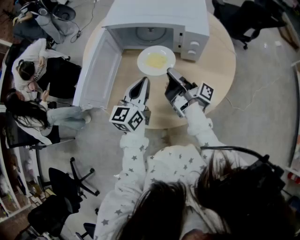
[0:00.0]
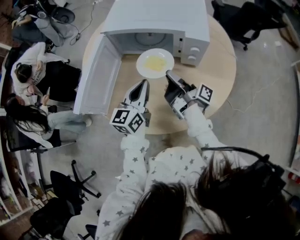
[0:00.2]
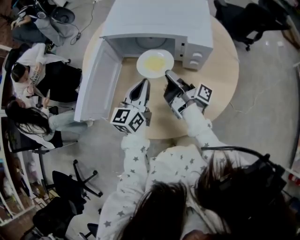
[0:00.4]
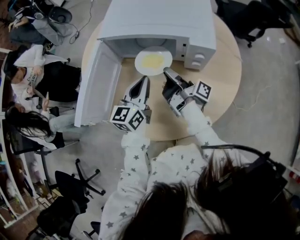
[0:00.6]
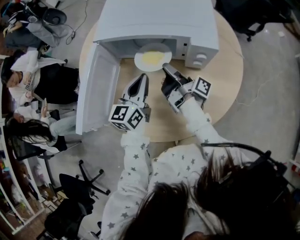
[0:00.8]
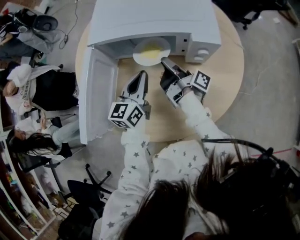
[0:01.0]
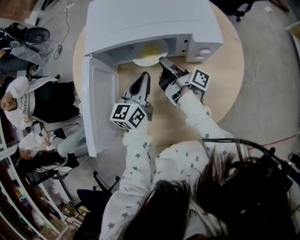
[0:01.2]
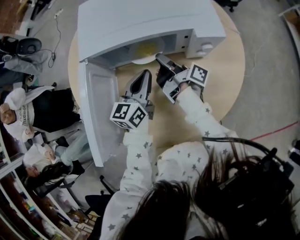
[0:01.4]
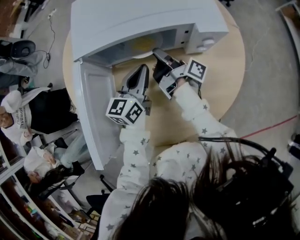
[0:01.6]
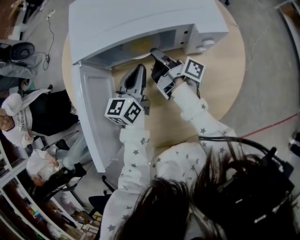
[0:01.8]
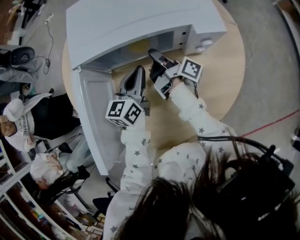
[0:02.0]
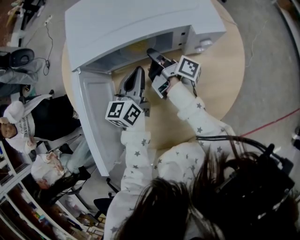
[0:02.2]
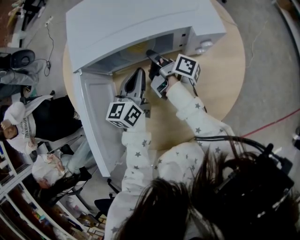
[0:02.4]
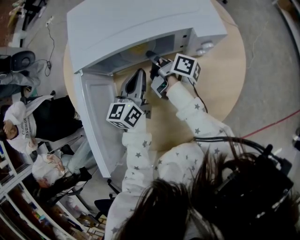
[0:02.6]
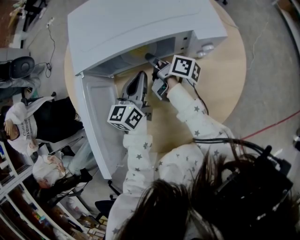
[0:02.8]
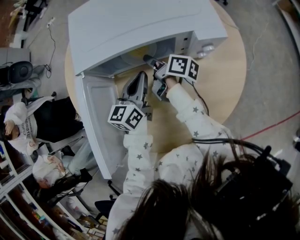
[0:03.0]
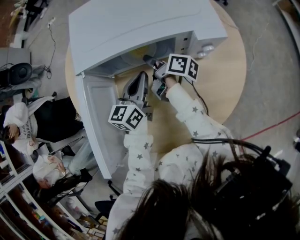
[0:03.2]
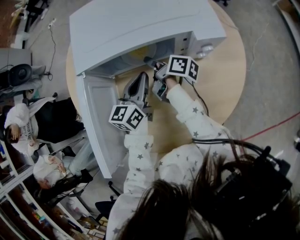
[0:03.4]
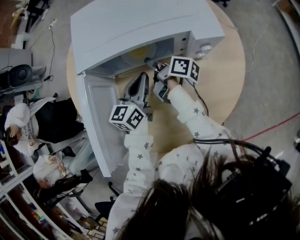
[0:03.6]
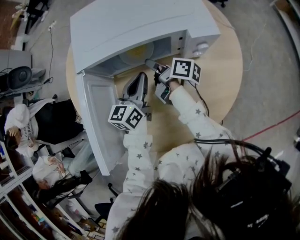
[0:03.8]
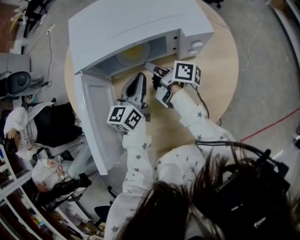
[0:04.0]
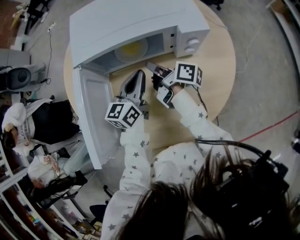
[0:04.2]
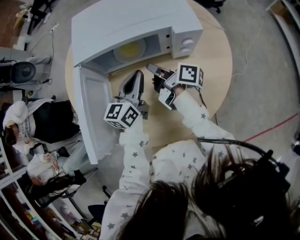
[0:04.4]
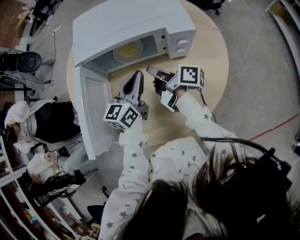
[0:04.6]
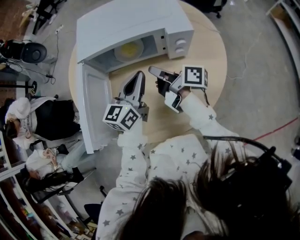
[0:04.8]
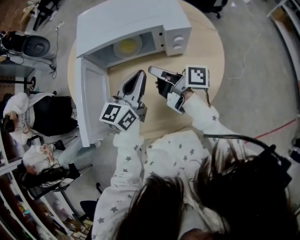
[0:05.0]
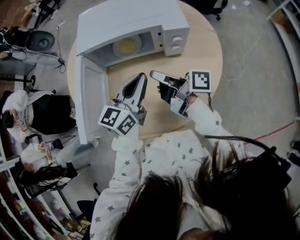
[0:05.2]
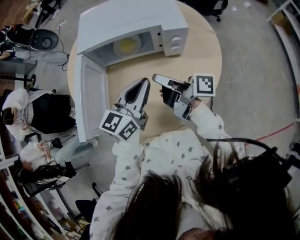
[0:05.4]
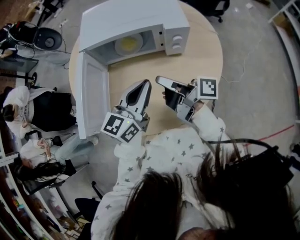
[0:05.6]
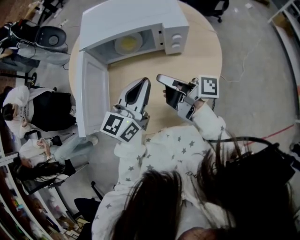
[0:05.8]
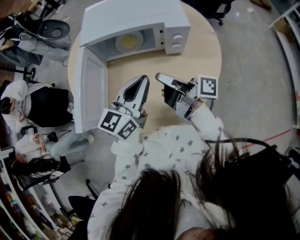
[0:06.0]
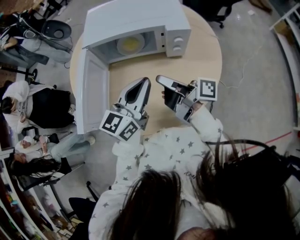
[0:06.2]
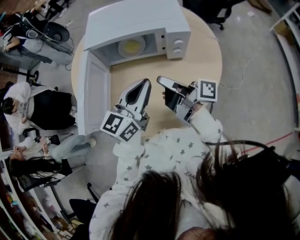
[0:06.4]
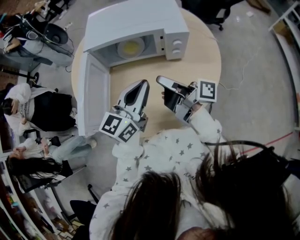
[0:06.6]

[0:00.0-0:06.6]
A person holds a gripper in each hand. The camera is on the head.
0.0 to 1.6 s: The left gripper ends up about 15 cm from where it was, and rotates approximately 20 degrees.
3.2 to 5.0 s: The left gripper changes place by approximately 15 cm.
5.0 to 6.6 s: The left gripper moves some 10 cm.

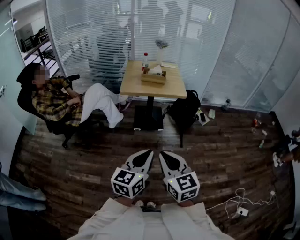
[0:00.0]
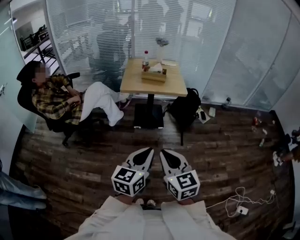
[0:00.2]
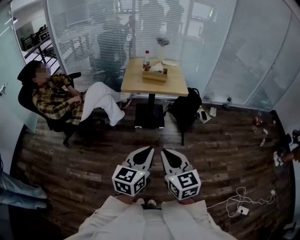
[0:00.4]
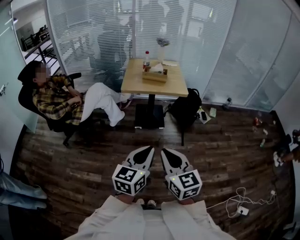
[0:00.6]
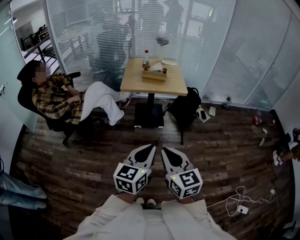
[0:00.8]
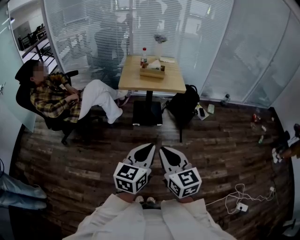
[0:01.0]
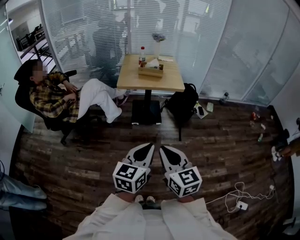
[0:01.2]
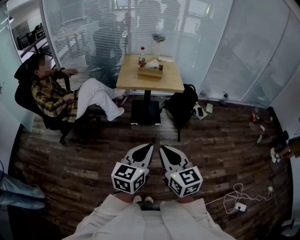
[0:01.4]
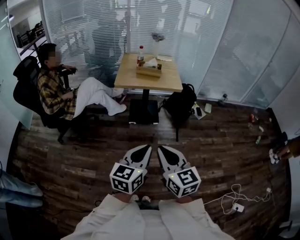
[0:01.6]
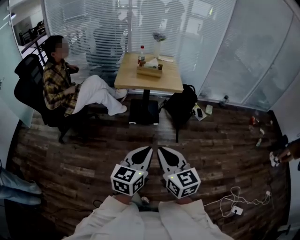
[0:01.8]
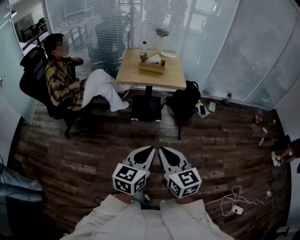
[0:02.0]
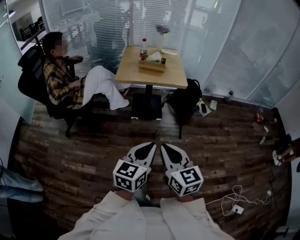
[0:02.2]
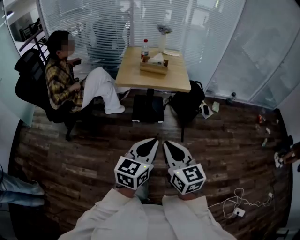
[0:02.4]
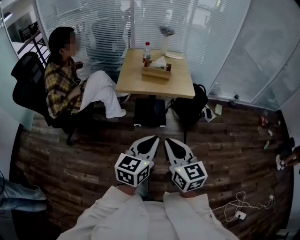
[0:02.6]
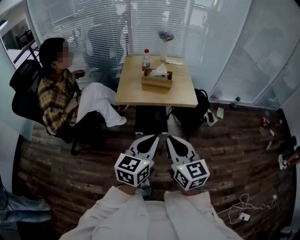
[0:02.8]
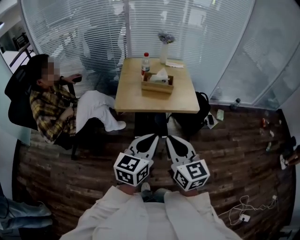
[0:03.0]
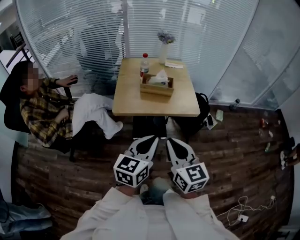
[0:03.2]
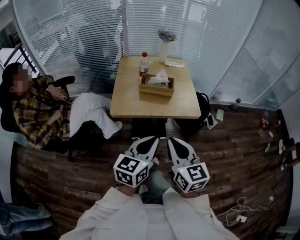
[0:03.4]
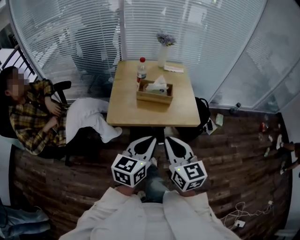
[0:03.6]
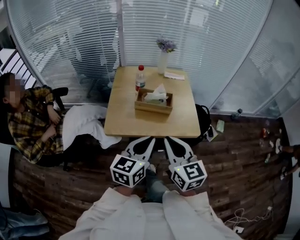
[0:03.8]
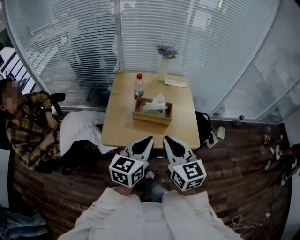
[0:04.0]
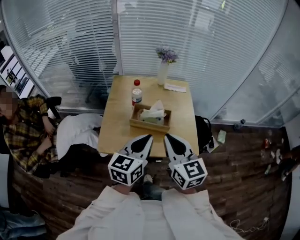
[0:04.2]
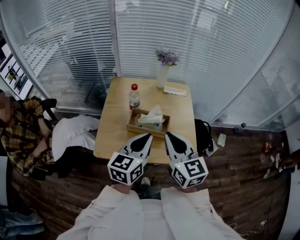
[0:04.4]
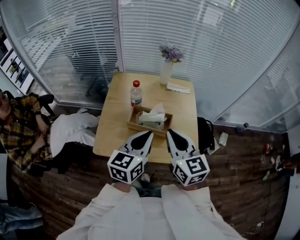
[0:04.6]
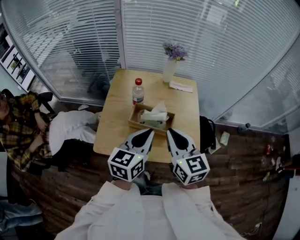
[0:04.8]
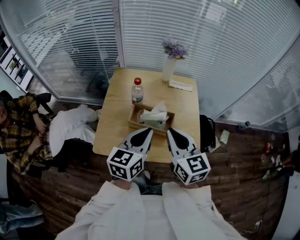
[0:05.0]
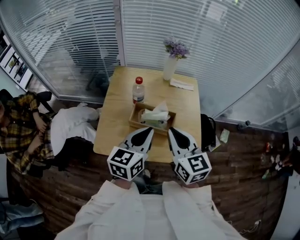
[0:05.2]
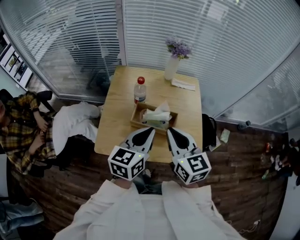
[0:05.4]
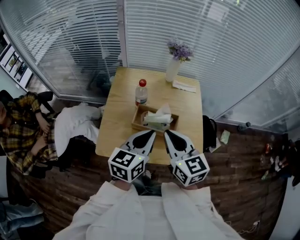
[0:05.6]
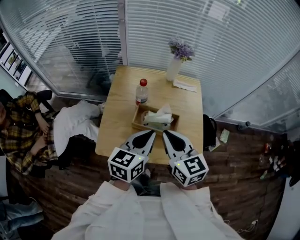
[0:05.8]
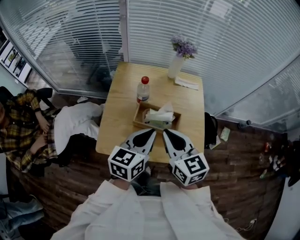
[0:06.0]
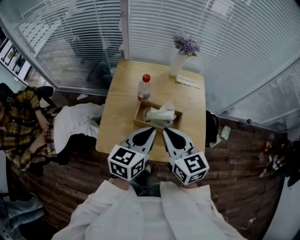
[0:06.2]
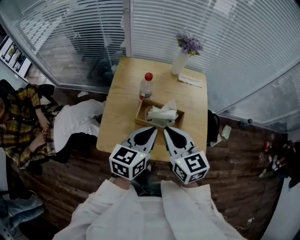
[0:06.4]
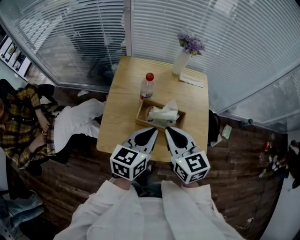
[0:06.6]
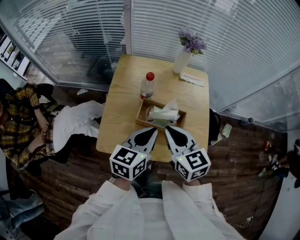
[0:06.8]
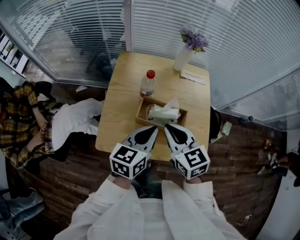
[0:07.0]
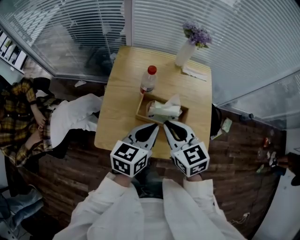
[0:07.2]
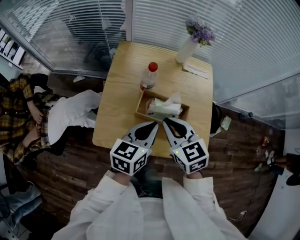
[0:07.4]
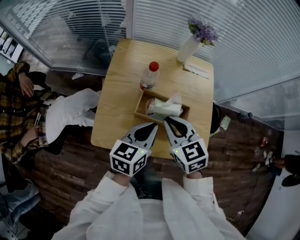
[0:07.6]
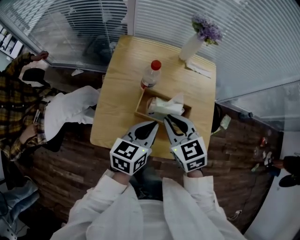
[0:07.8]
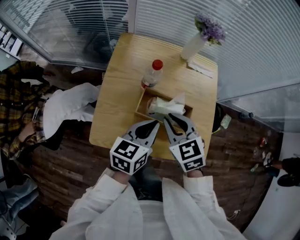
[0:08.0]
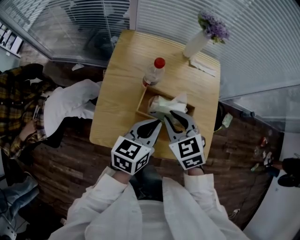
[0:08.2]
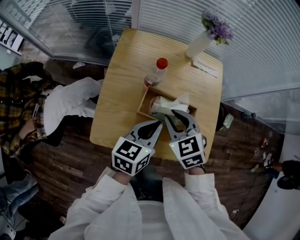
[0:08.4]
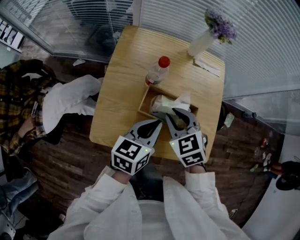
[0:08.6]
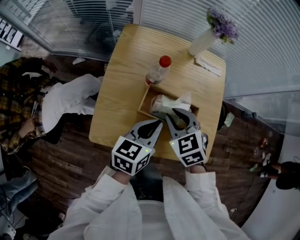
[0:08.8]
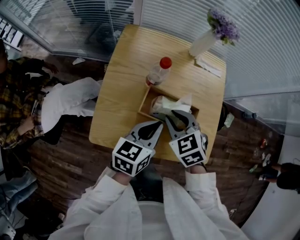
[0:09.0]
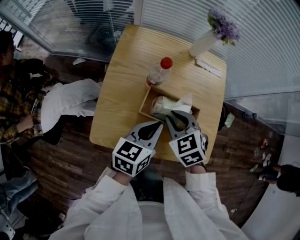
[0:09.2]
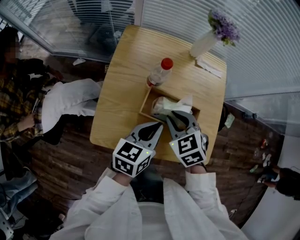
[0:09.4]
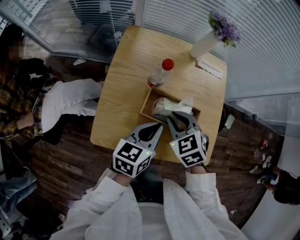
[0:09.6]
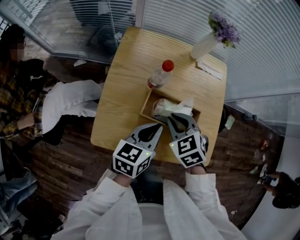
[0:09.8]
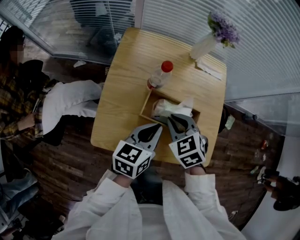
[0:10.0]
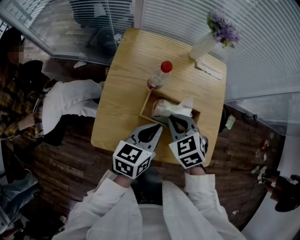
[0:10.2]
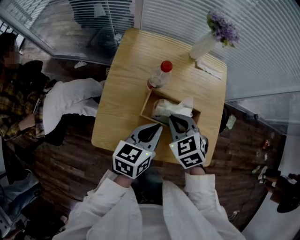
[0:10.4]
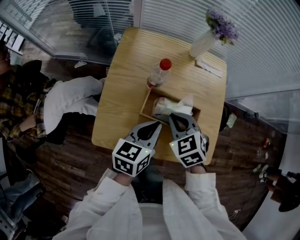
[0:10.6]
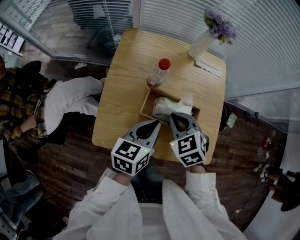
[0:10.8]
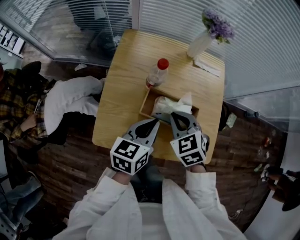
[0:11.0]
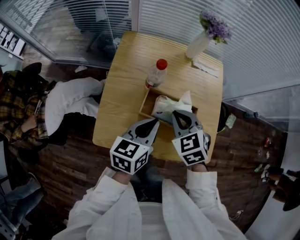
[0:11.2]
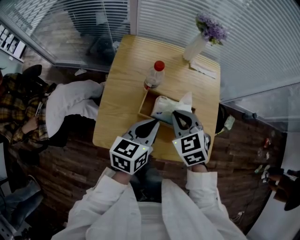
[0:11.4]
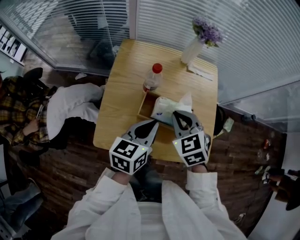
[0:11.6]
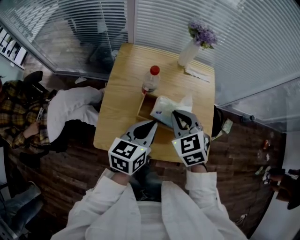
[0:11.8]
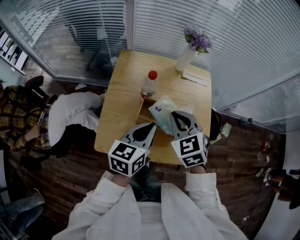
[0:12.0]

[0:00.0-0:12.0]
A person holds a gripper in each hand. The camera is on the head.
0.0 to 1.6 s: The grippers move only a little.
1.6 to 3.0 s: Both grippers move forward, some 30 cm.
3.0 to 4.4 s: Both grippers move forward, approximately 35 cm.
4.4 to 6.0 s: The right gripper ends up roughly 5 cm from where it was. Meanwhile the left gripper shifts by some 5 cm.
6.0 to 7.6 s: Both grippers travel together downward, some 10 cm. The right gripper swivels some 20 degrees.
7.6 to 9.0 s: The right gripper travels downward by roughly 5 cm, and swivels roughly 20 degrees.
9.0 to 10.4 s: The two grippers keep their place.
10.4 to 12.0 s: The left gripper heads upward, covering some 5 cm, while the right gripper goes about 10 cm upward.

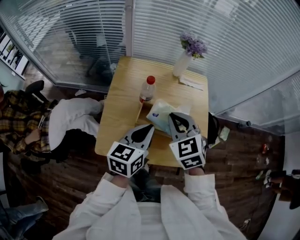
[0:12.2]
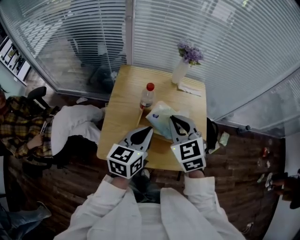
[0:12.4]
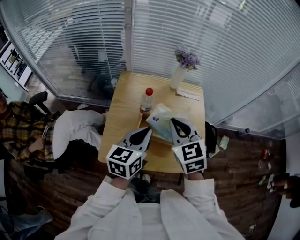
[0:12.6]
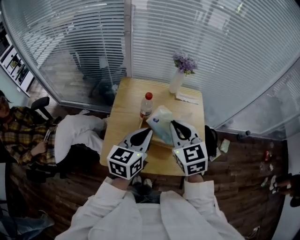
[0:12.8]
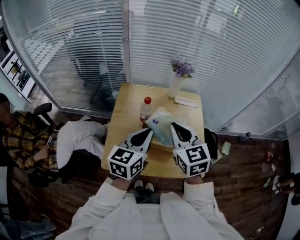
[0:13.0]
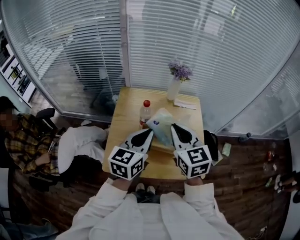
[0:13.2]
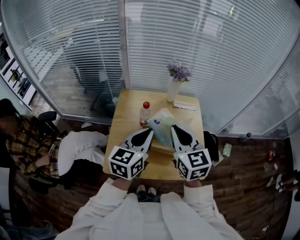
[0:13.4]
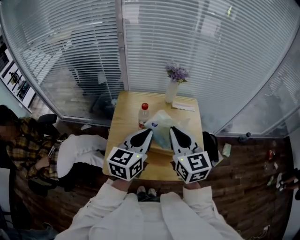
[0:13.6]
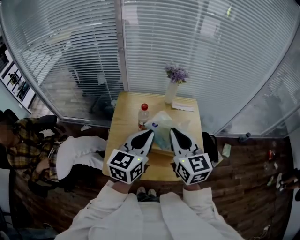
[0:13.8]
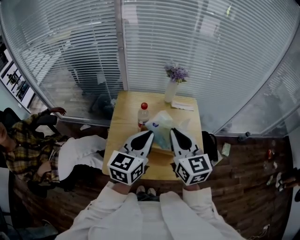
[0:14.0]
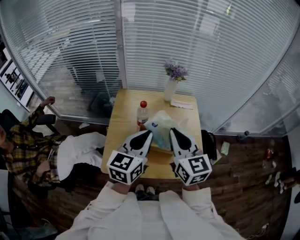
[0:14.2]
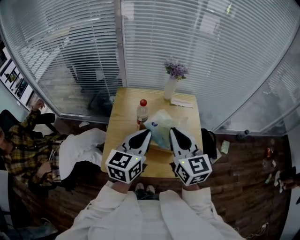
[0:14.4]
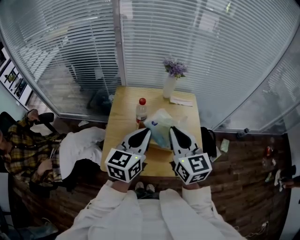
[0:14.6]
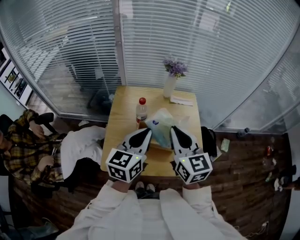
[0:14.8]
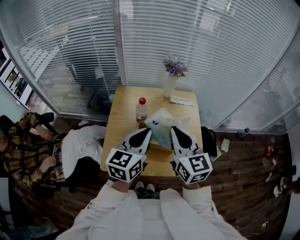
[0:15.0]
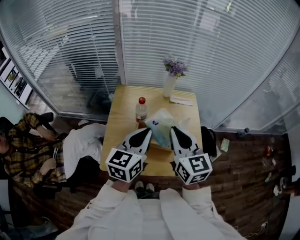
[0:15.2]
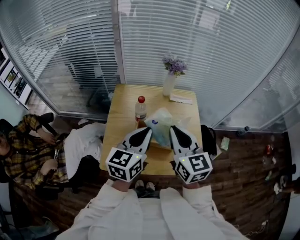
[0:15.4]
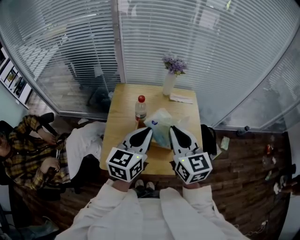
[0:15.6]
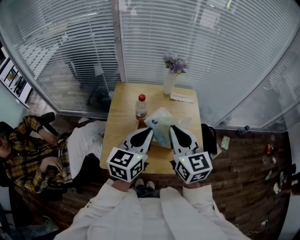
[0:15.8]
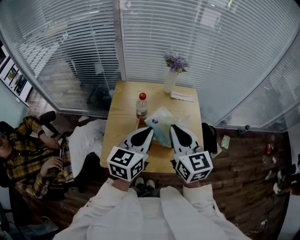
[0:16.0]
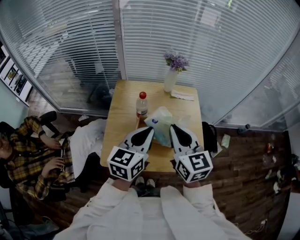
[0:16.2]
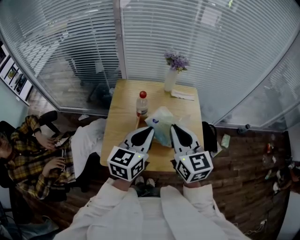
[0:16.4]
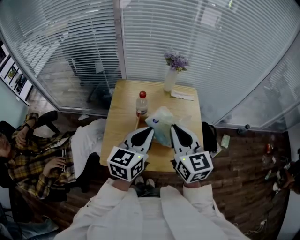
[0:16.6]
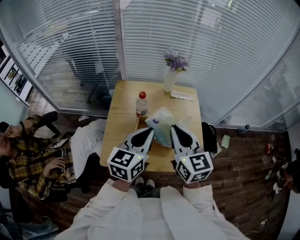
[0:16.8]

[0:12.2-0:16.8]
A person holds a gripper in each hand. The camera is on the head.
12.2 to 13.8 s: Both grippers move upward, about 10 cm. The right gripper rotates approximately 40 degrees.
13.8 to 16.8 s: The grippers make only small movements.

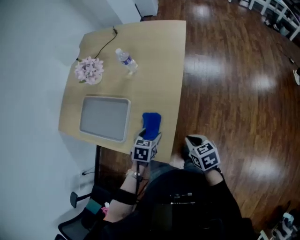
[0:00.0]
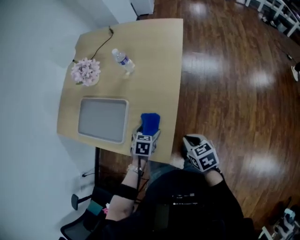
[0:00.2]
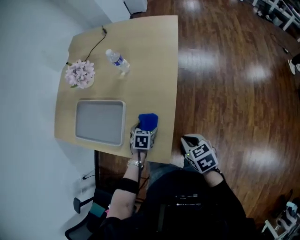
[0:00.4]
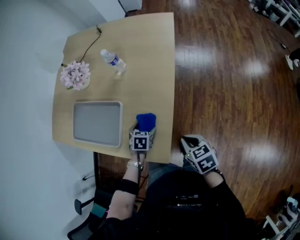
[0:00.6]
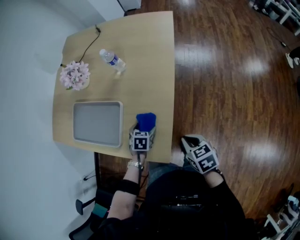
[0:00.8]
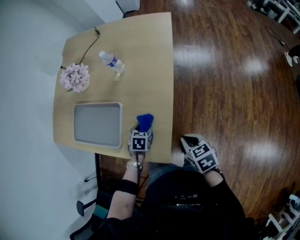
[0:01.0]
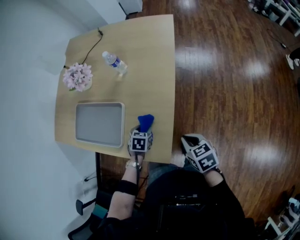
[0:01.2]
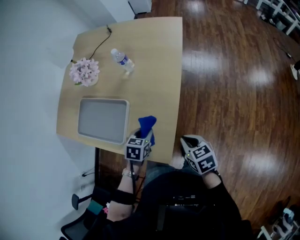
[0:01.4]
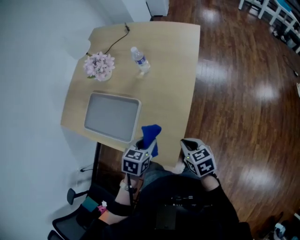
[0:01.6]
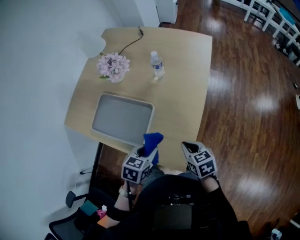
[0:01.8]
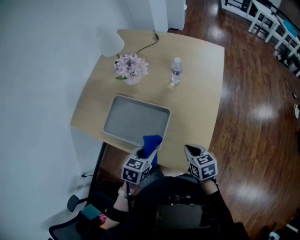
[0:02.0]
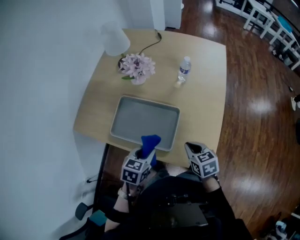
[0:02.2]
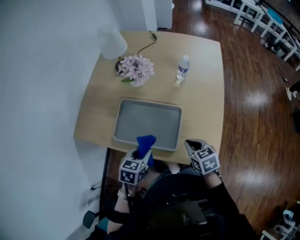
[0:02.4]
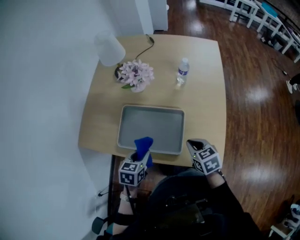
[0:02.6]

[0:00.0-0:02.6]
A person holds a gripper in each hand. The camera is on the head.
0.0 to 1.2 s: The left gripper is displaced downward by approximately 5 cm, and closes.
1.2 to 2.6 s: The left gripper shifts some 35 cm to the left and upward. Meanwhile the right gripper is displaced to the left by some 30 cm.
